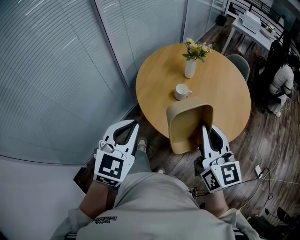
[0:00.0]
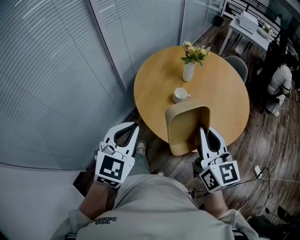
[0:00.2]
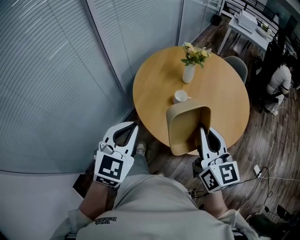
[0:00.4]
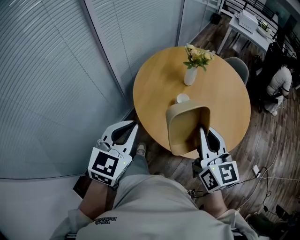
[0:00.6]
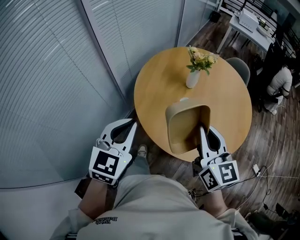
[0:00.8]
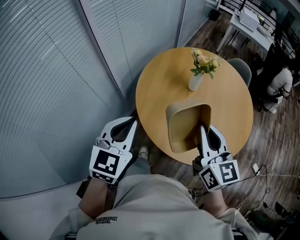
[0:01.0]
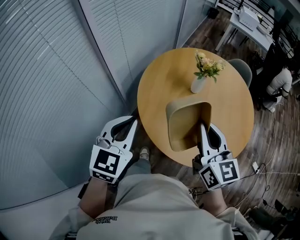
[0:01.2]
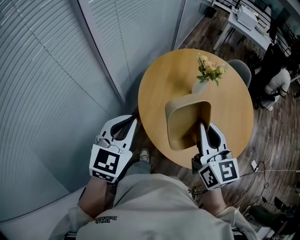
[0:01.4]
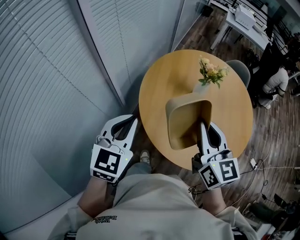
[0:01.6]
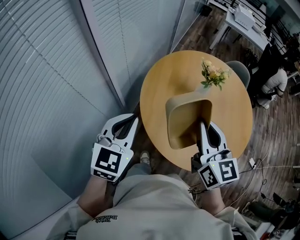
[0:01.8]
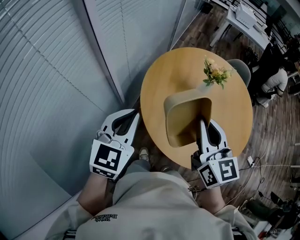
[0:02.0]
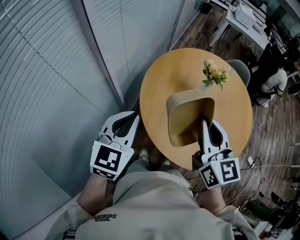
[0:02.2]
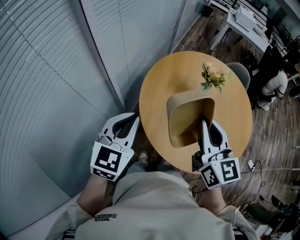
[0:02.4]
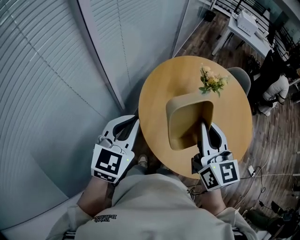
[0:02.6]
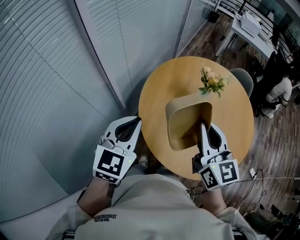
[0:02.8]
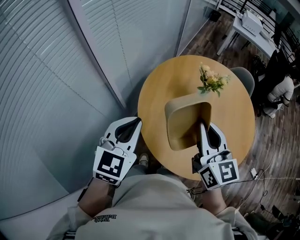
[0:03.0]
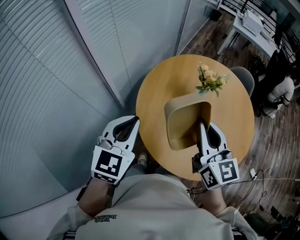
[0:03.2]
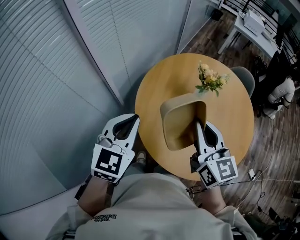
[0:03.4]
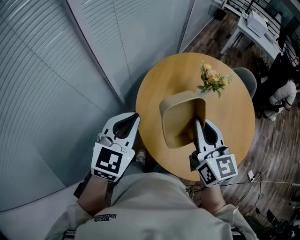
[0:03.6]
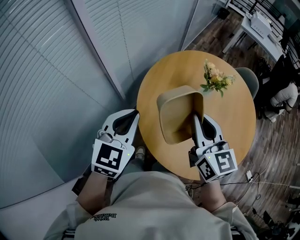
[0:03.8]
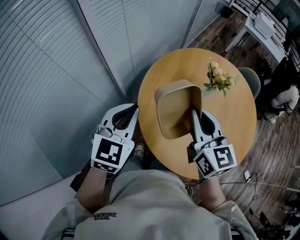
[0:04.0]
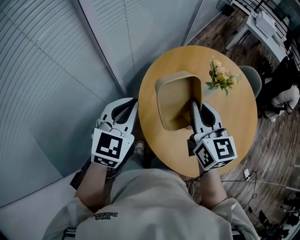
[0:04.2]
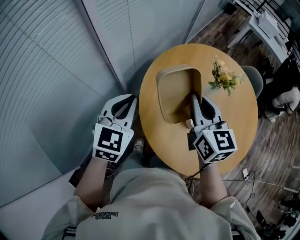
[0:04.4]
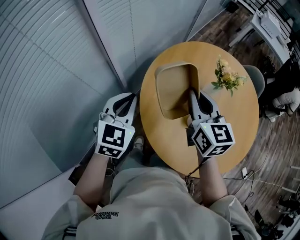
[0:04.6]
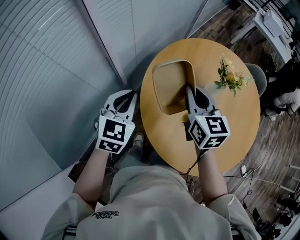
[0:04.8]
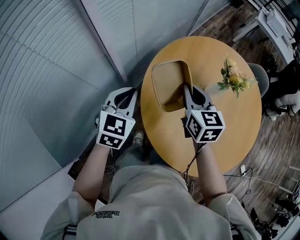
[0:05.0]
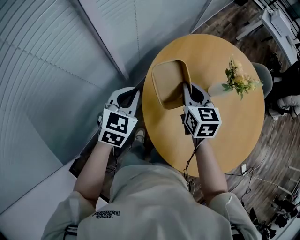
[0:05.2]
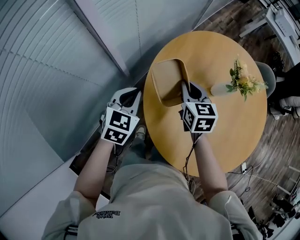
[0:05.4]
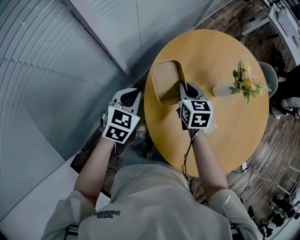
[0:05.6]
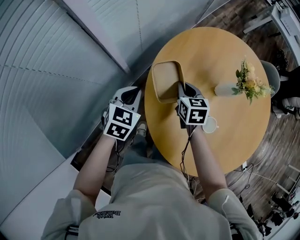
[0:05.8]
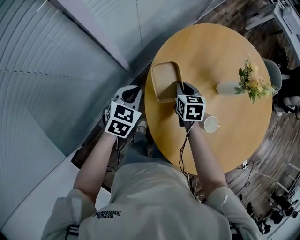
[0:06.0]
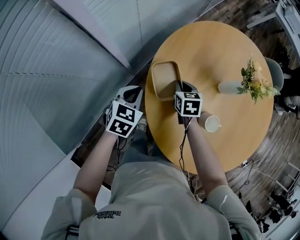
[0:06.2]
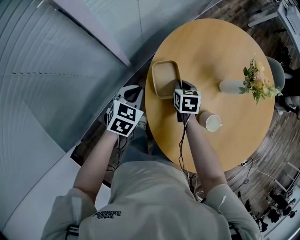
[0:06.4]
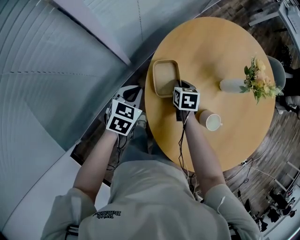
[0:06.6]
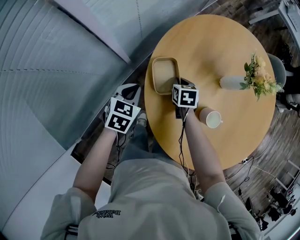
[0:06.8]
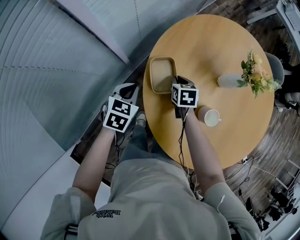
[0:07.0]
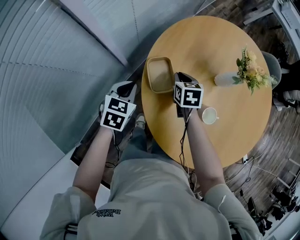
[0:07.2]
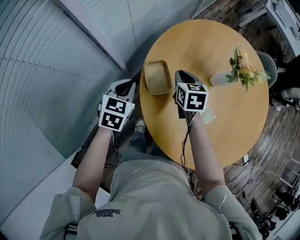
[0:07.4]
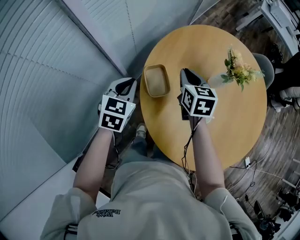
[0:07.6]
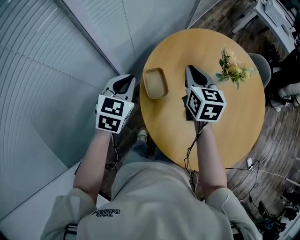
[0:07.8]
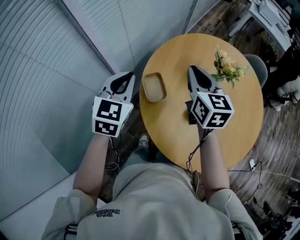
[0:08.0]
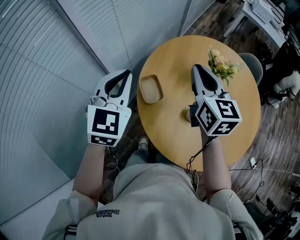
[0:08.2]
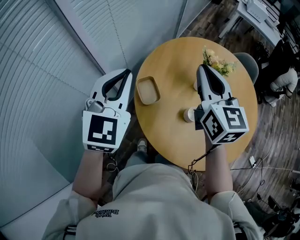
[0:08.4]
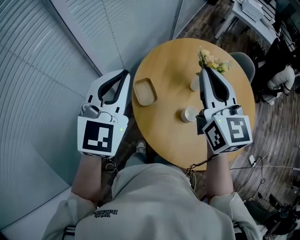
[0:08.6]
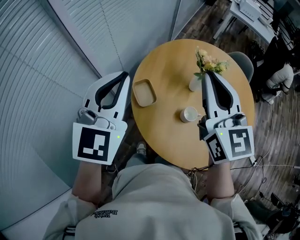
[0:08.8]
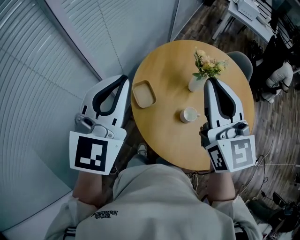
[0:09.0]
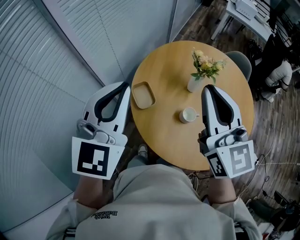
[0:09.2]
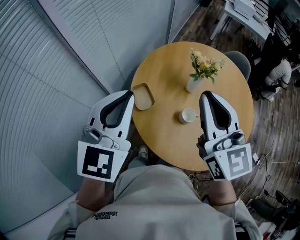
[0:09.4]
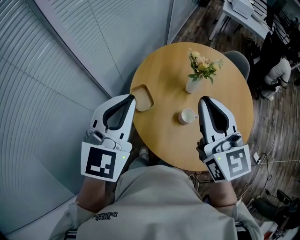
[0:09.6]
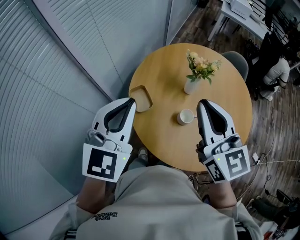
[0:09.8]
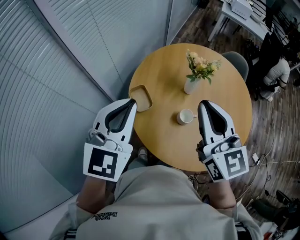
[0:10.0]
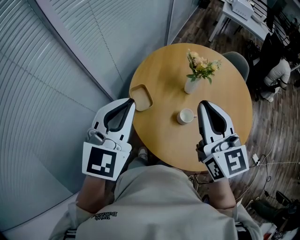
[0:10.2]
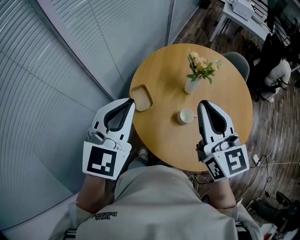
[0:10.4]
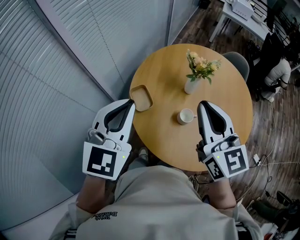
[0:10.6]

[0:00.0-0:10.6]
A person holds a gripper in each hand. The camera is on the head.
0:00.0 to 0:01.6: Both grippers travel together forward and to the left, some 30 cm.
0:01.6 to 0:03.0: There are only small adjustments of the grippers.
0:03.0 to 0:04.6: The left gripper heads downward, forward and to the left, covering about 10 cm. The right gripper is displaced forward, downward and to the left by some 15 cm.
0:04.6 to 0:06.0: The left gripper heads downward, covering approximately 20 cm, and turns by some 20 degrees. The right gripper moves downward, approximately 30 cm, and points its fingers some 30 degrees further downward.
0:06.0 to 0:07.6: The right gripper moves upward, approximately 10 cm. Meanwhile the left gripper shifts some 5 cm upward.
0:07.6 to 0:09.0: The right gripper heads upward and backward, covering approximately 35 cm, and points its fingers approximately 40 degrees further upward; the left gripper is displaced upward by roughly 30 cm, and points its fingers about 30 degrees further upward.
0:09.0 to 0:10.6: The right gripper ends up about 5 cm from where it was. Meanwhile the left gripper ends up roughly 5 cm from where it was.

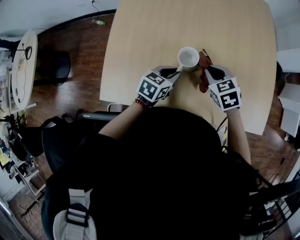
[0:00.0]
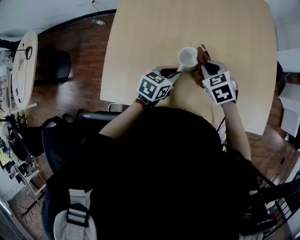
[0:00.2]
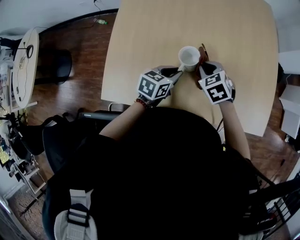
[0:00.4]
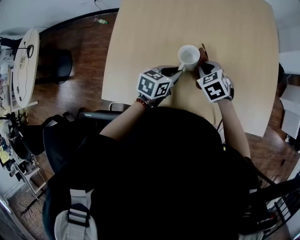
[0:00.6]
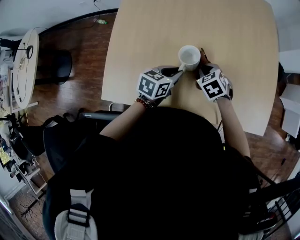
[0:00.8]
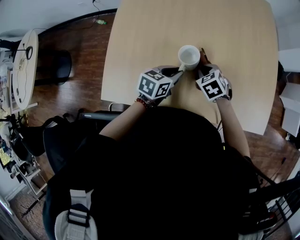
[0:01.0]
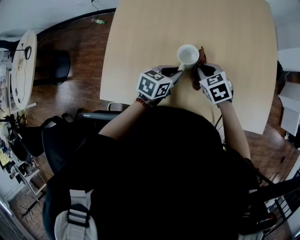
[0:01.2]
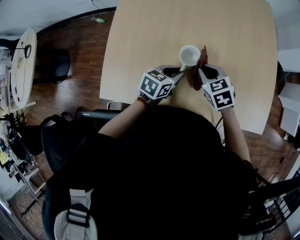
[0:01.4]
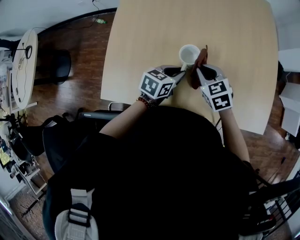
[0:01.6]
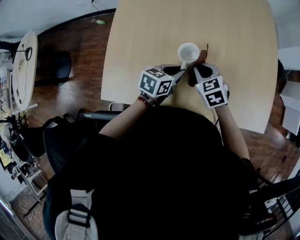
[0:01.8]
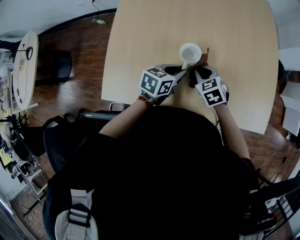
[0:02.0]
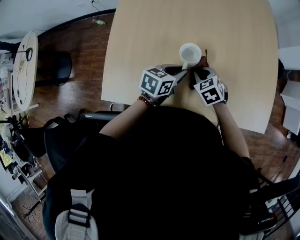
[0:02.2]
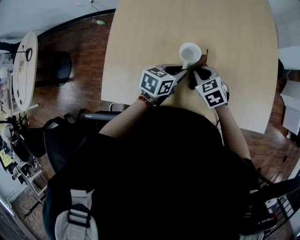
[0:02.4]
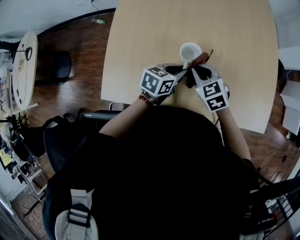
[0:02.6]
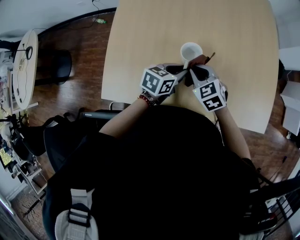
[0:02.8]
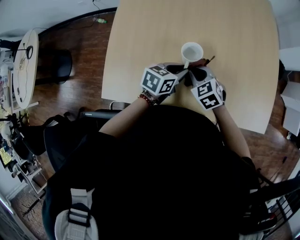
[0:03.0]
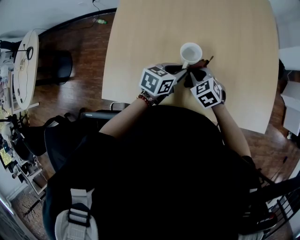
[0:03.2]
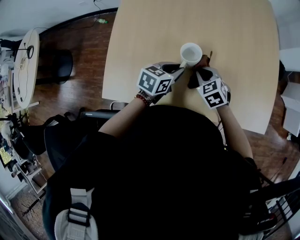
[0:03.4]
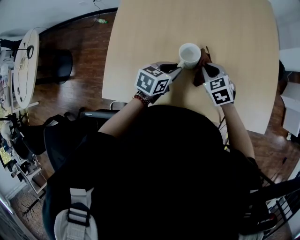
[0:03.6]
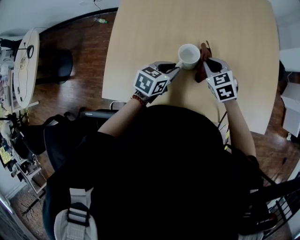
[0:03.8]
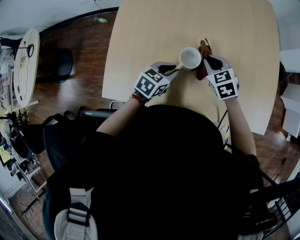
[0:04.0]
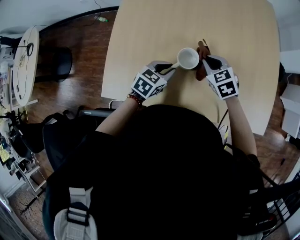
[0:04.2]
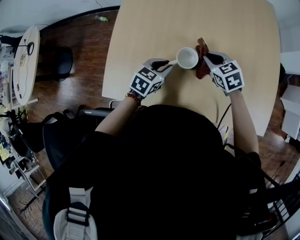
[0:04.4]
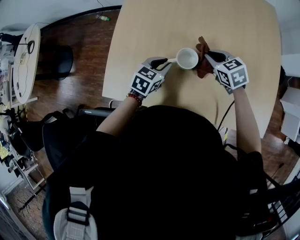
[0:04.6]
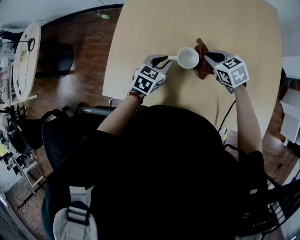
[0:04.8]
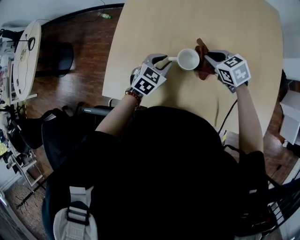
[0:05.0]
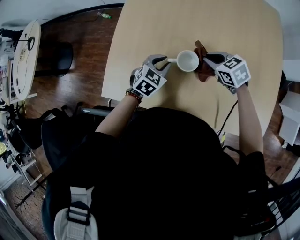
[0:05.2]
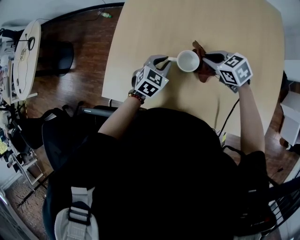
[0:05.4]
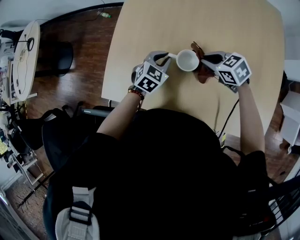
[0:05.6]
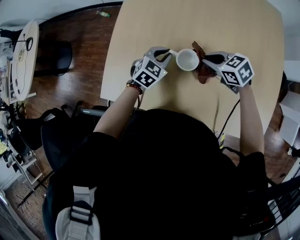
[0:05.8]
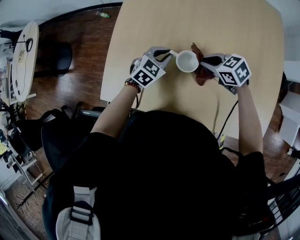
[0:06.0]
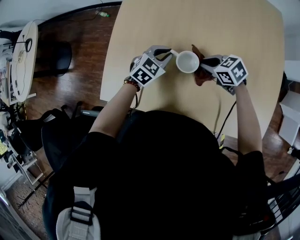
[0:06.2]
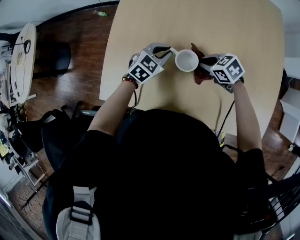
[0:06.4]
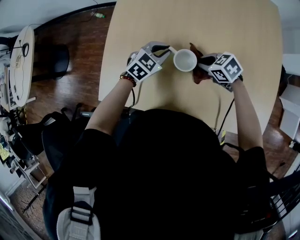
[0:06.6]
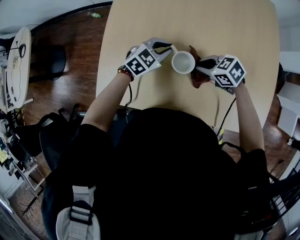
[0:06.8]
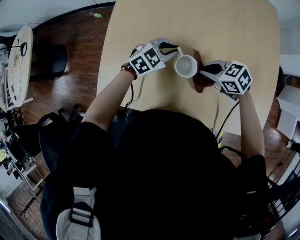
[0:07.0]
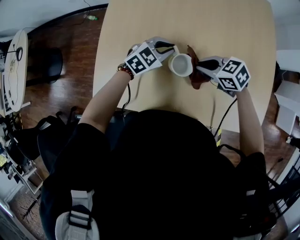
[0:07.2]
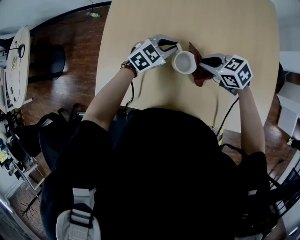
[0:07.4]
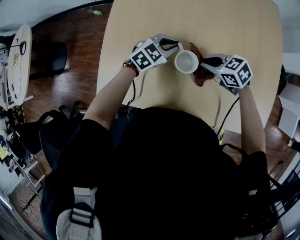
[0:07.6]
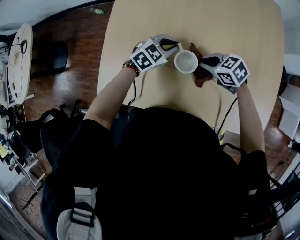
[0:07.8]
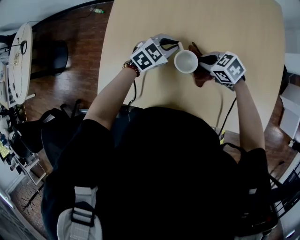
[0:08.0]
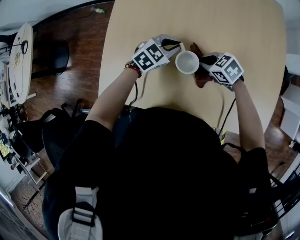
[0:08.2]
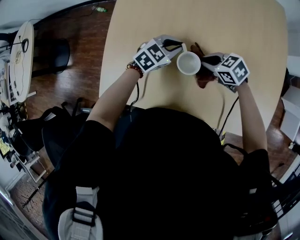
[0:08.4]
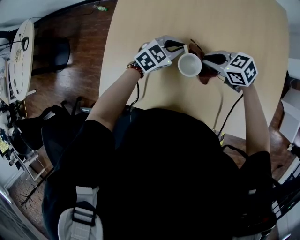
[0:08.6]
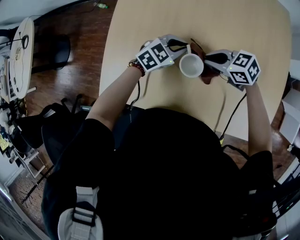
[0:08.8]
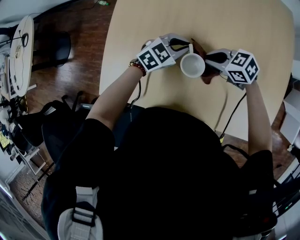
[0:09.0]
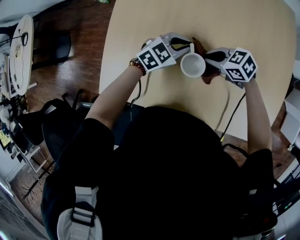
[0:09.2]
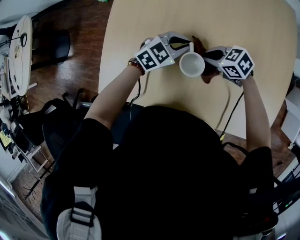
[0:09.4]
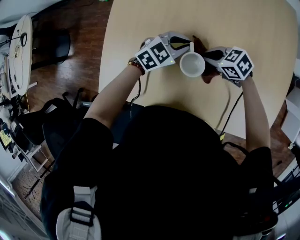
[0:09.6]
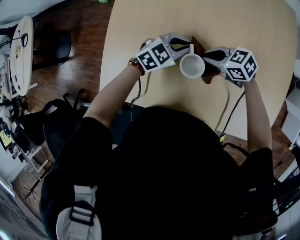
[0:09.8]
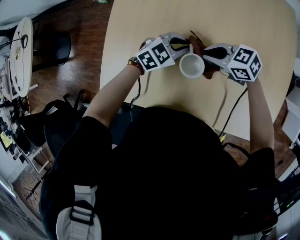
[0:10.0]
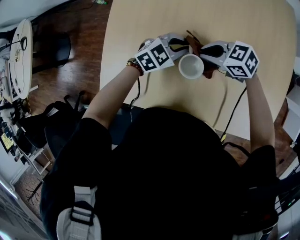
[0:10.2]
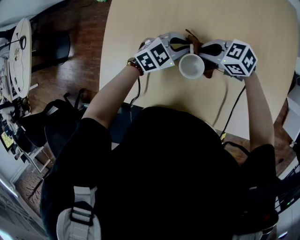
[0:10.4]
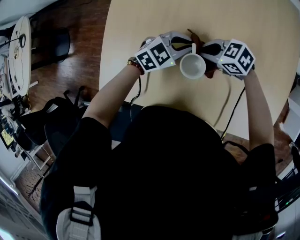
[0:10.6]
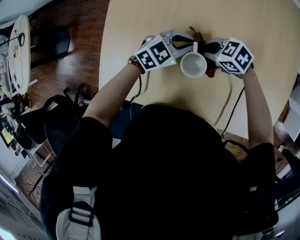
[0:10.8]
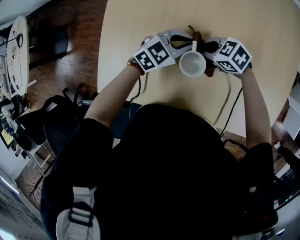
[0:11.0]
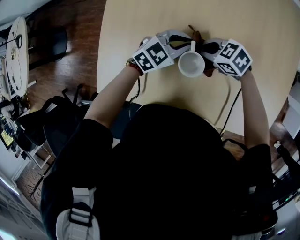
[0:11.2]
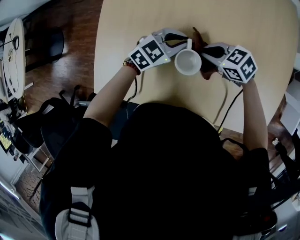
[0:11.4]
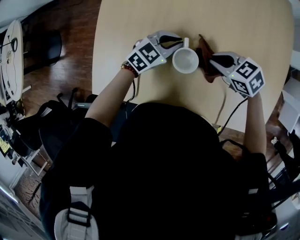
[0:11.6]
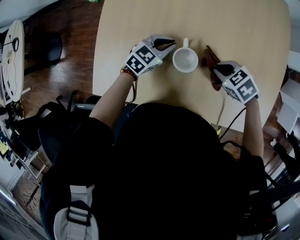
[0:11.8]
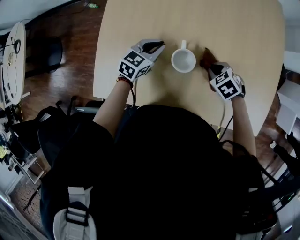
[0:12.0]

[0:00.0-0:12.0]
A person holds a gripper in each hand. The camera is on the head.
0:01.6 to 0:03.0: The right gripper changes place by some 5 cm.
0:03.0 to 0:04.4: The left gripper heads to the left, covering some 5 cm, while the right gripper moves forward, about 10 cm.
0:04.4 to 0:06.0: The left gripper is displaced forward by roughly 10 cm. Meanwhile the right gripper rotates roughly 30 degrees.
0:06.0 to 0:07.6: The left gripper ends up roughly 5 cm from where it was.
0:07.6 to 0:09.0: The grippers stay close to where they were, moving slightly.
0:09.0 to 0:10.4: The grippers make only small movements.
0:10.4 to 0:12.0: The left gripper moves approximately 10 cm, and swivels about 30 degrees, while the right gripper swings up and down, some 5 cm each way, with 2 reversals, and tips its fingers downward by approximately 30 degrees.

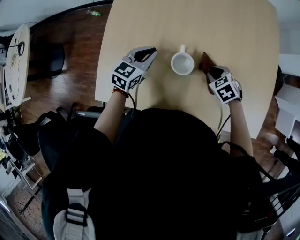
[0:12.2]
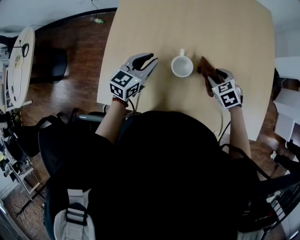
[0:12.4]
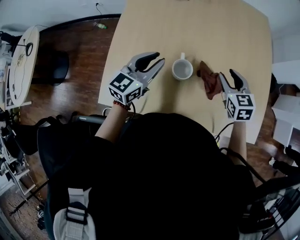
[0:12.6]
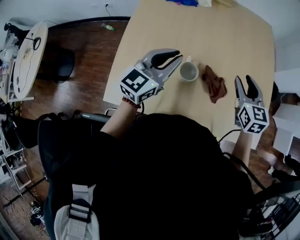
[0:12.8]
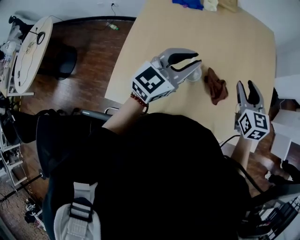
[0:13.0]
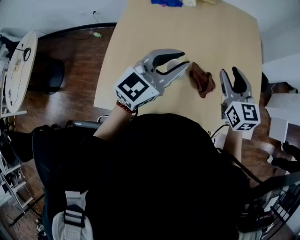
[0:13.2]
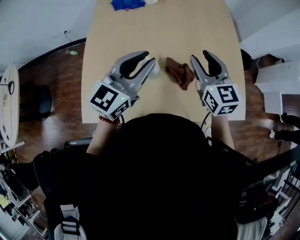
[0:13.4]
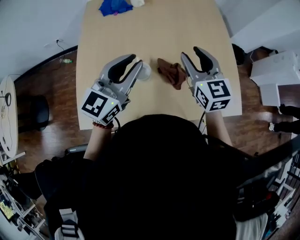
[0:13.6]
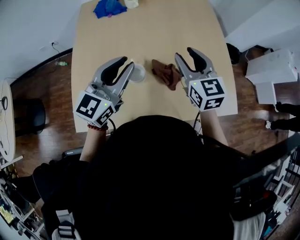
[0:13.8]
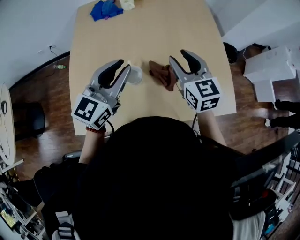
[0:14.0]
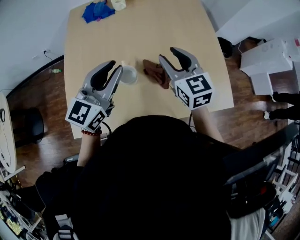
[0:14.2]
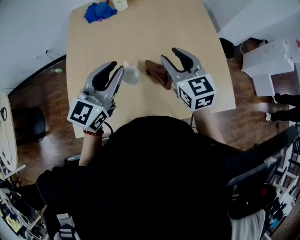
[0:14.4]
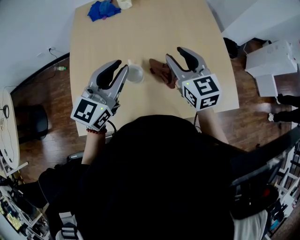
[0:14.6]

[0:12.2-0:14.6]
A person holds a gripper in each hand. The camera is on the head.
0:12.2 to 0:13.4: The right gripper goes approximately 25 cm upward, tilts its fingers about 50 degrees upward, and opens its fingers, while the left gripper goes roughly 25 cm upward and to the right, and rotates approximately 30 degrees.
0:13.4 to 0:14.6: The grippers stay close to where they were, moving slightly.
